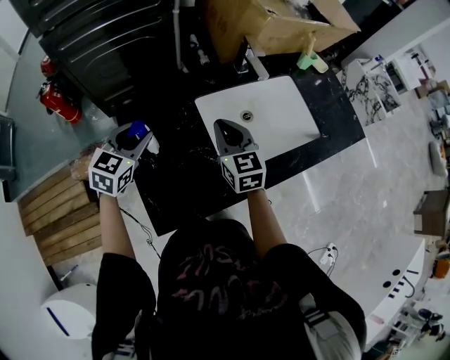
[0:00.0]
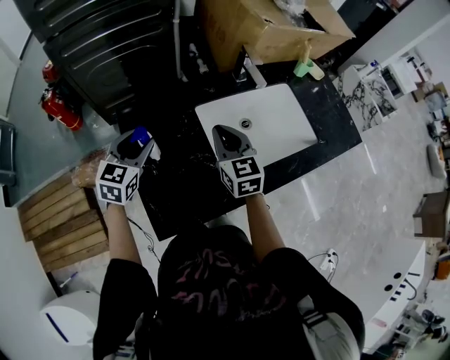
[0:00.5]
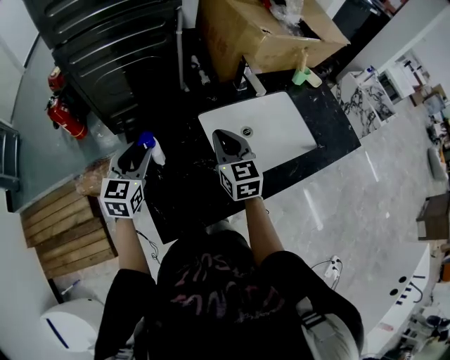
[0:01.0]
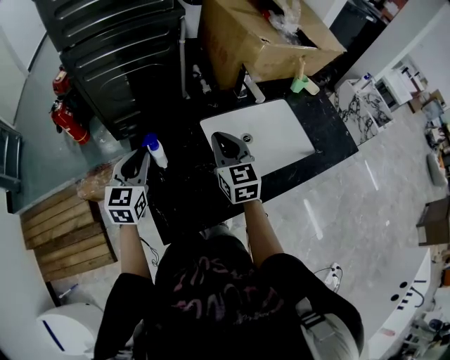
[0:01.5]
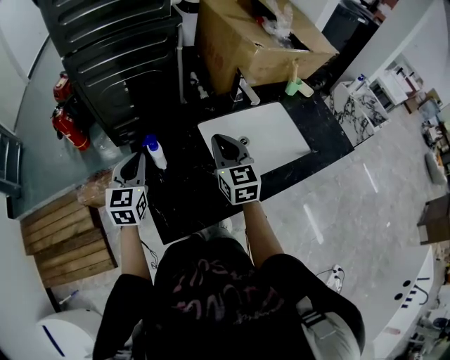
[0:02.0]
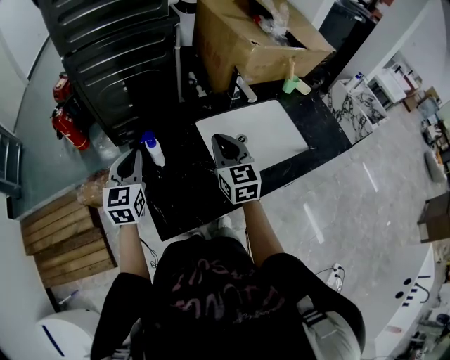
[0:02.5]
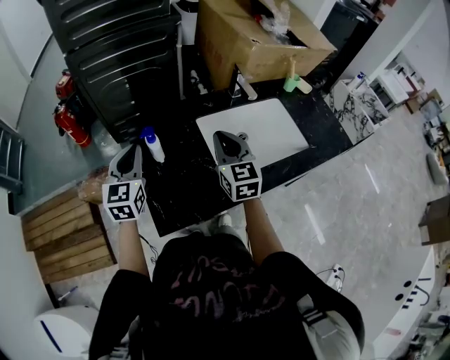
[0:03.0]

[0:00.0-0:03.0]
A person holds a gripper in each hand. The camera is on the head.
0:00.0 to 0:01.5: The left gripper changes place by about 5 cm, and turns by about 20 degrees, while the right gripper is displaced upward by approximately 5 cm.
0:01.5 to 0:03.0: The grippers move only a little.

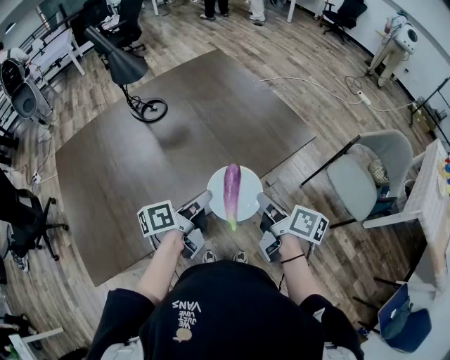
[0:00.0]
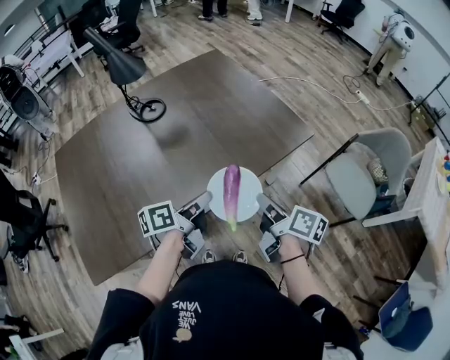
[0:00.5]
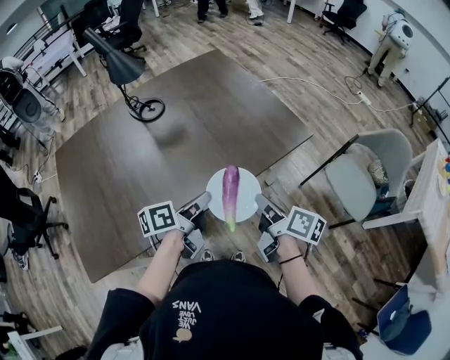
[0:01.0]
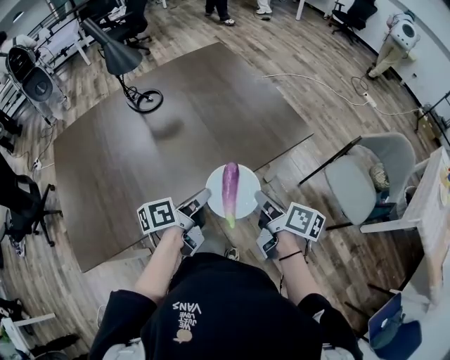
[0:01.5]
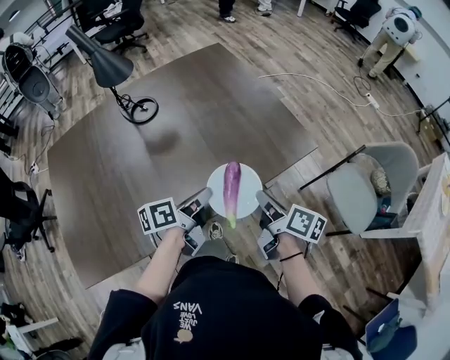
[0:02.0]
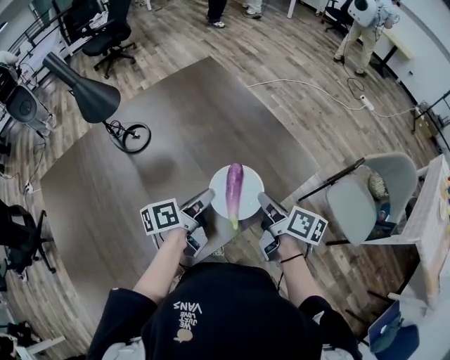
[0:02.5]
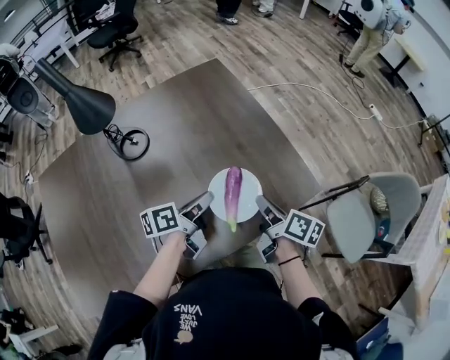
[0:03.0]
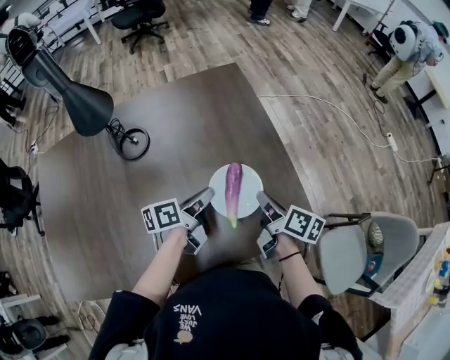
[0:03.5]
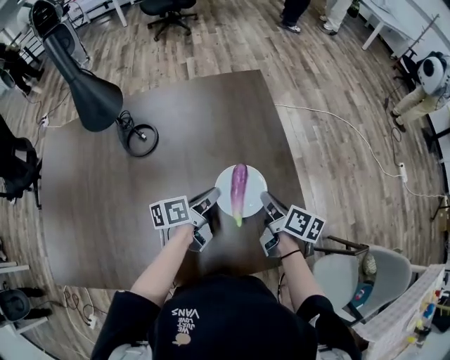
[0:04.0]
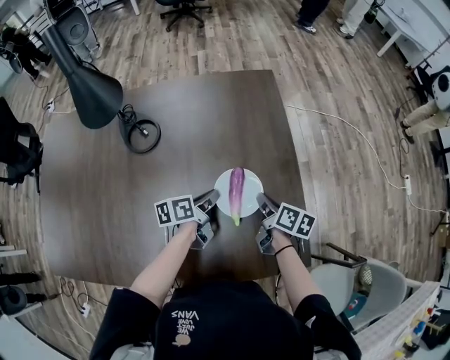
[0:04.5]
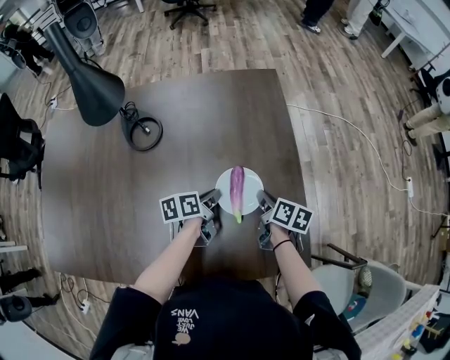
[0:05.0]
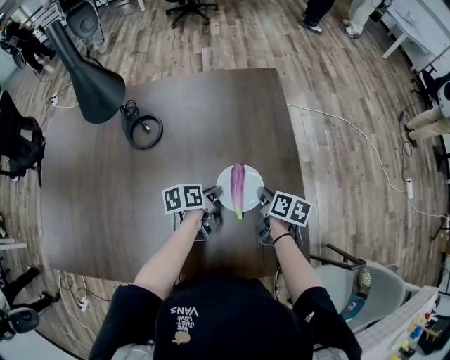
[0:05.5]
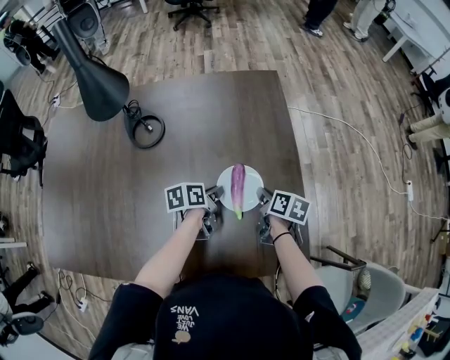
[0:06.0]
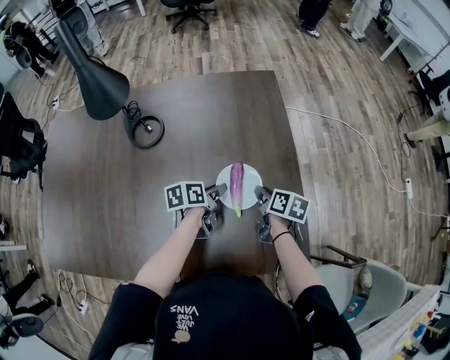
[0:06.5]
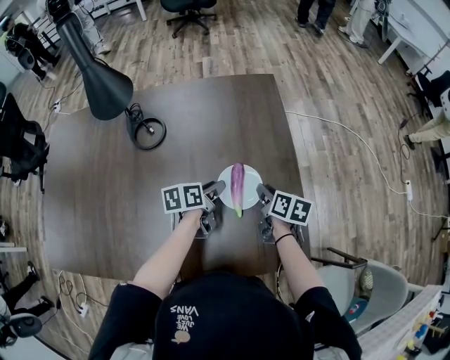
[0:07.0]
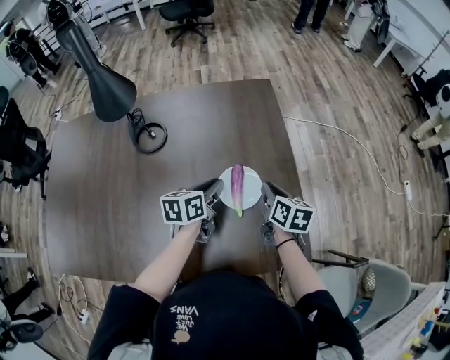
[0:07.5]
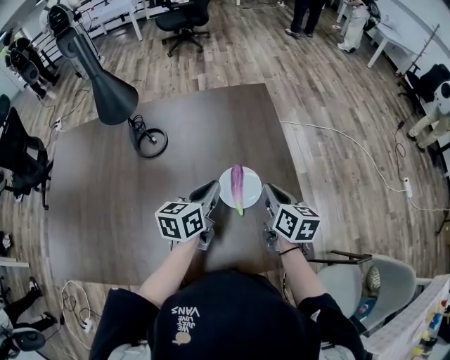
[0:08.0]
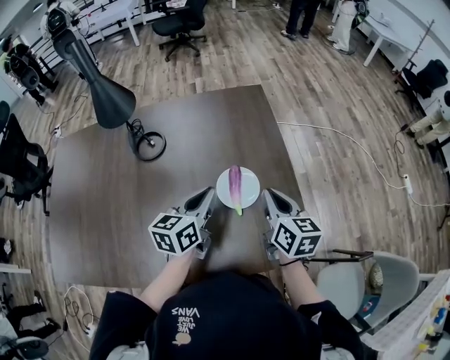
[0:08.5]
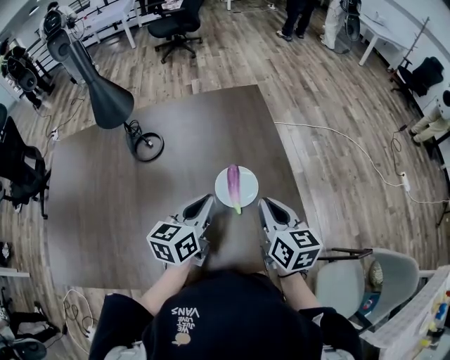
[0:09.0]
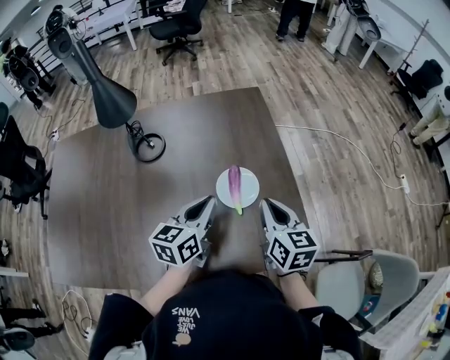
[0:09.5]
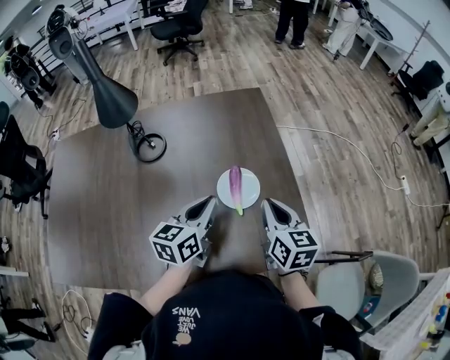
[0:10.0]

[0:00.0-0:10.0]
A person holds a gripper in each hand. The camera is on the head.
0:00.0 to 0:02.0: Both grippers move forward, about 10 cm.
0:02.0 to 0:04.0: The grippers both shift forward by some 35 cm. The right gripper swivels some 20 degrees.
0:04.0 to 0:06.0: Both grippers travel together downward, some 10 cm. The right gripper turns by about 20 degrees.
0:06.0 to 0:08.0: The grippers both shift upward by roughly 15 cm. The right gripper changes its angle by approximately 30 degrees. The left gripper changes its angle by approximately 40 degrees, and opens, then closes again.
0:08.0 to 0:10.0: Both grippers move backward, about 5 cm.

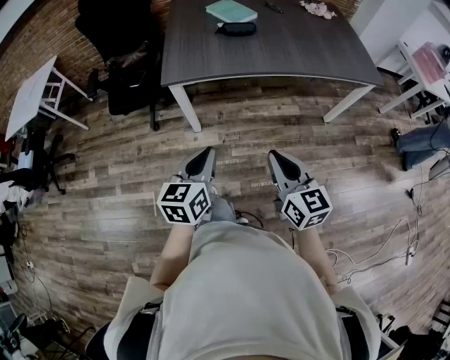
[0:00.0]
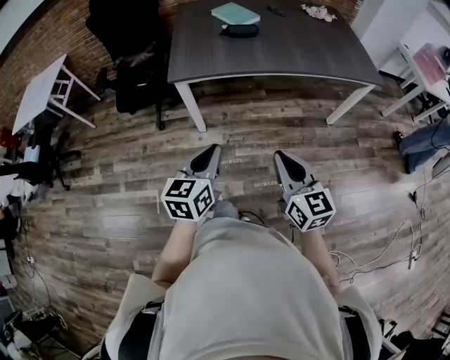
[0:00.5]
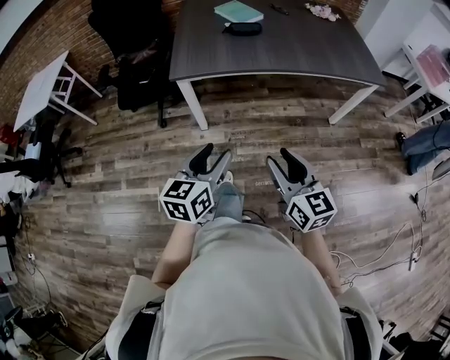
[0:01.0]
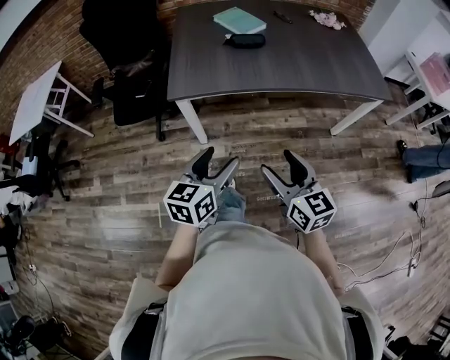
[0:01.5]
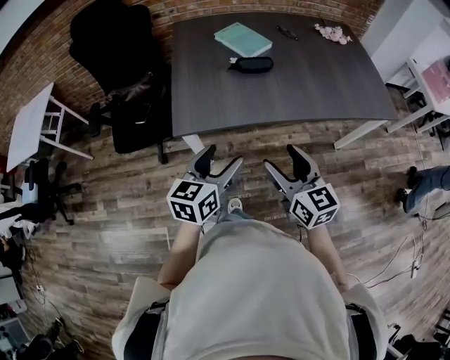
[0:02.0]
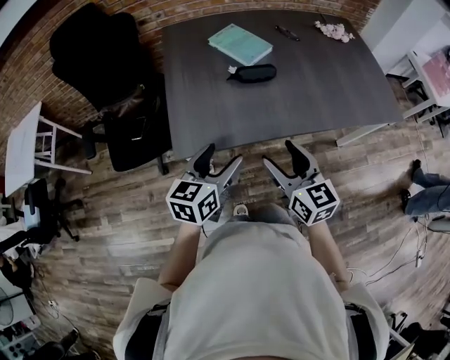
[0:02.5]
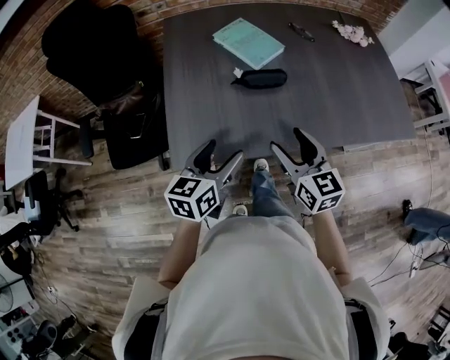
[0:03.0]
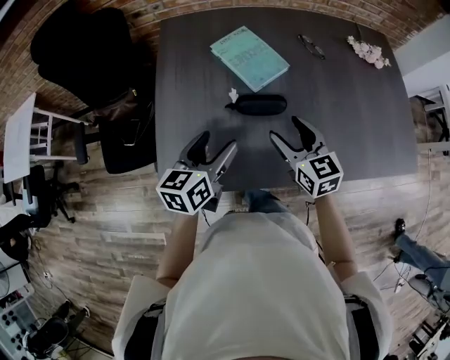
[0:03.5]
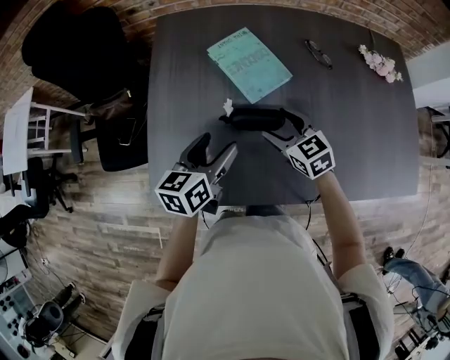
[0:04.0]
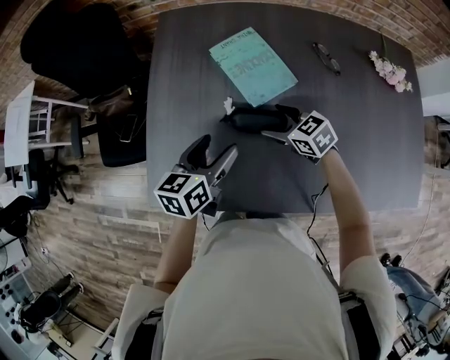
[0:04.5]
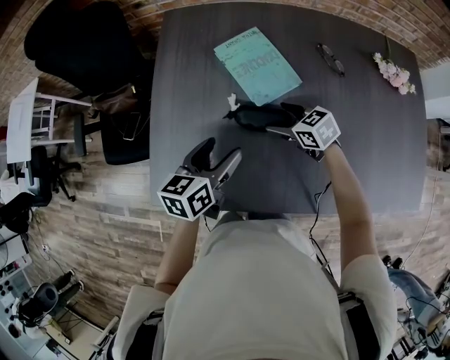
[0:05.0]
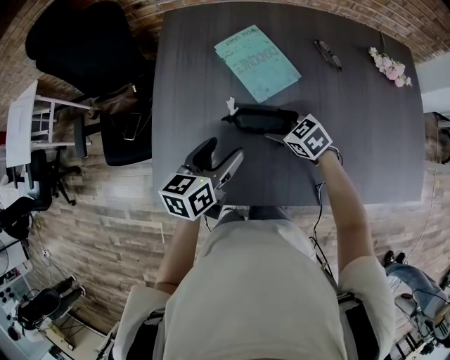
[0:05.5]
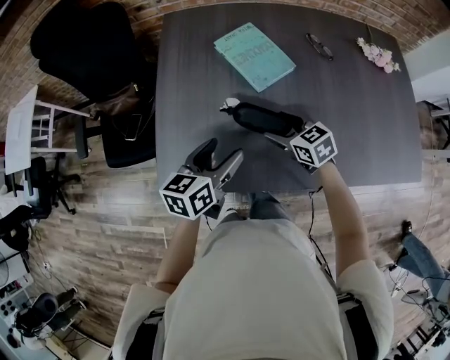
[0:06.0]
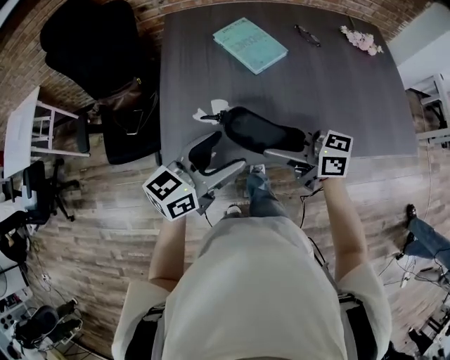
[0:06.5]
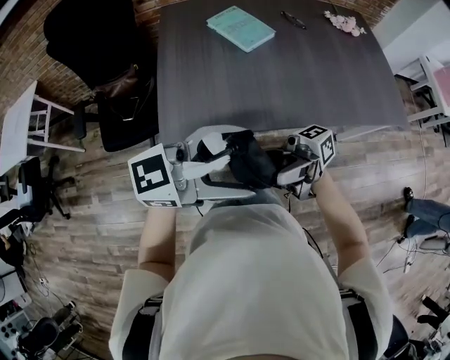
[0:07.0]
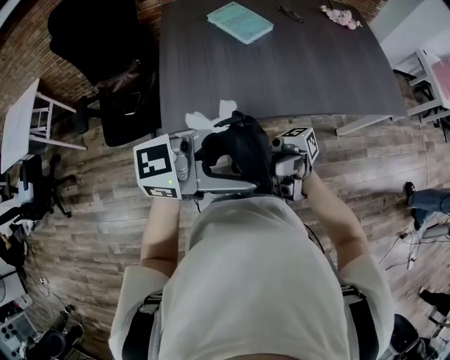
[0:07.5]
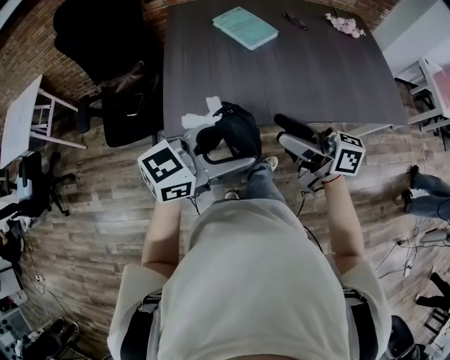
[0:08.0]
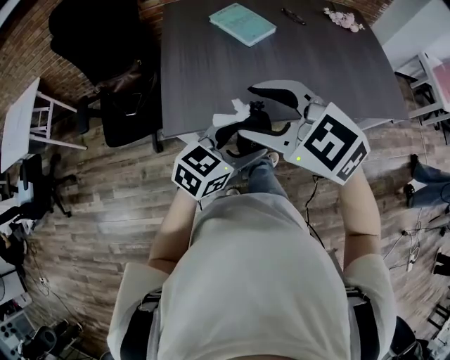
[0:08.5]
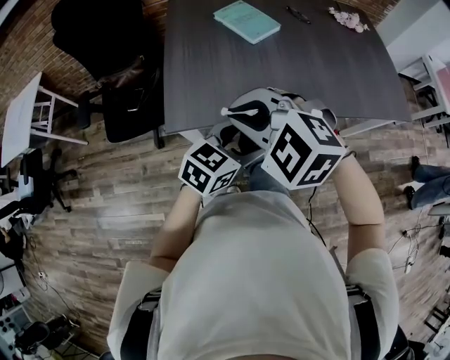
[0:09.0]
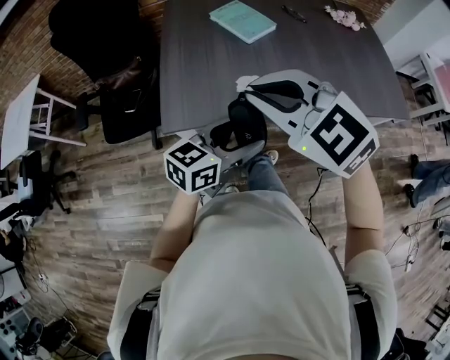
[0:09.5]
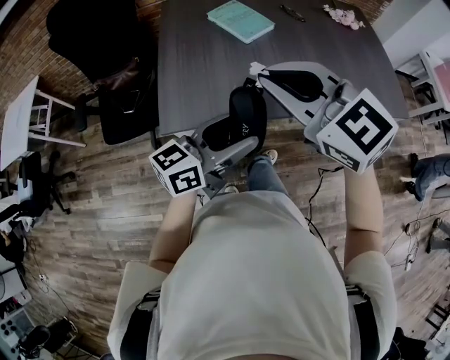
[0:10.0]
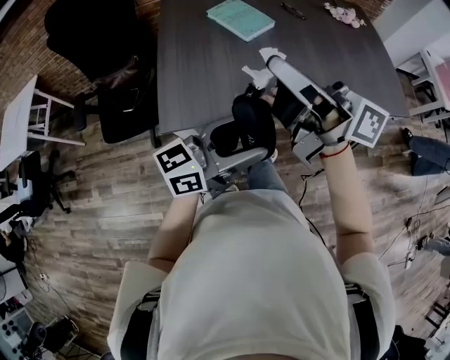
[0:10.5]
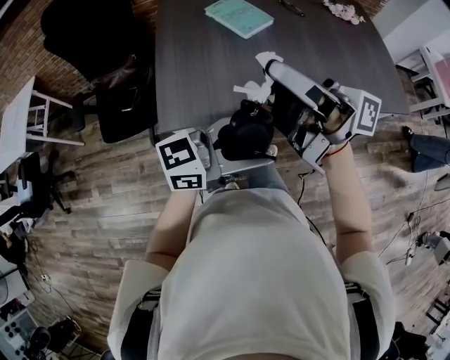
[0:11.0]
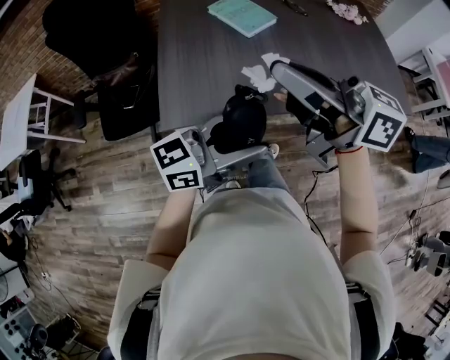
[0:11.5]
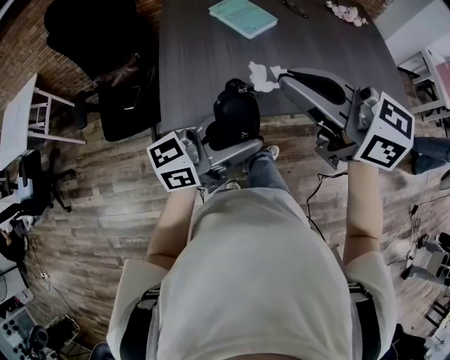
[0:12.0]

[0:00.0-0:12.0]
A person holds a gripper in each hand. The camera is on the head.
0:00.0 to 0:02.0: Both grippers move forward, about 20 cm. The left gripper opens its fingers. The right gripper opens its fingers.
0:02.0 to 0:04.0: The grippers both shift forward by approximately 40 cm. The right gripper swivels approximately 30 degrees.
0:04.0 to 0:06.0: The right gripper shifts by some 5 cm. Meanwhile the left gripper heads backward, covering about 5 cm.
0:06.0 to 0:08.0: The right gripper changes place by approximately 35 cm, and tilts its fingers approximately 50 degrees upward; the left gripper moves some 30 cm, and rotates about 50 degrees.
0:08.0 to 0:10.0: The right gripper goes some 10 cm upward, rolls counterclockwise, seen from behind, by approximately 60 degrees, and closes its fingers; the left gripper moves roughly 10 cm downward and comes back, and rotates approximately 20 degrees.
0:10.0 to 0:12.0: The right gripper swivels some 30 degrees.

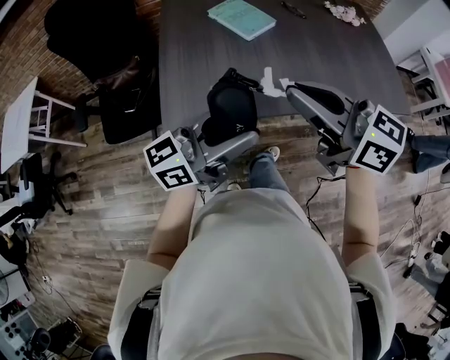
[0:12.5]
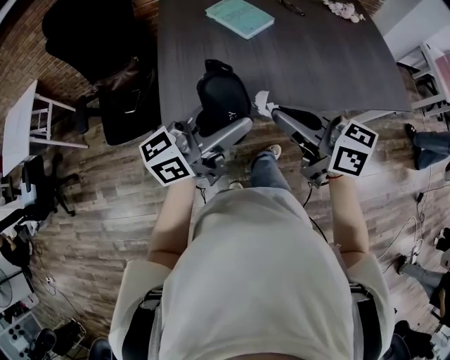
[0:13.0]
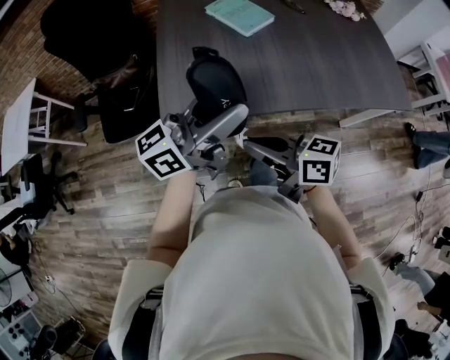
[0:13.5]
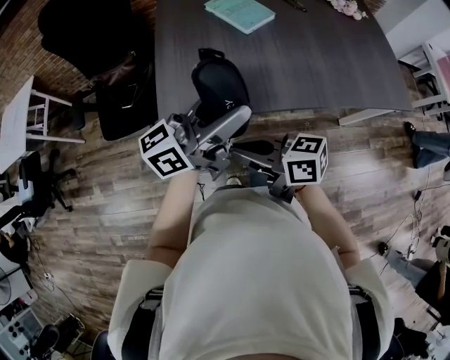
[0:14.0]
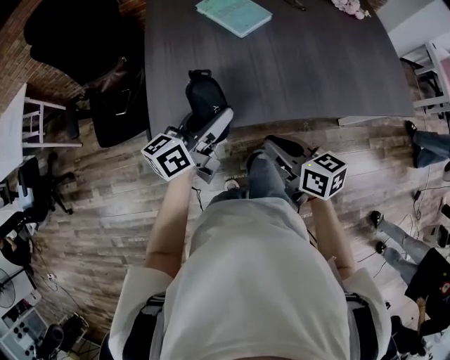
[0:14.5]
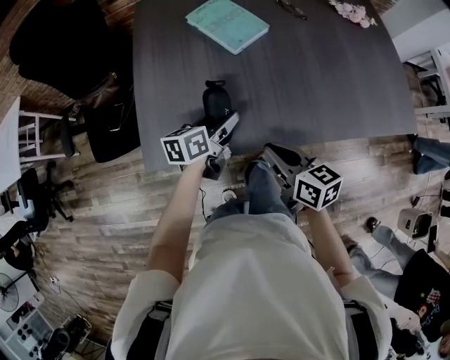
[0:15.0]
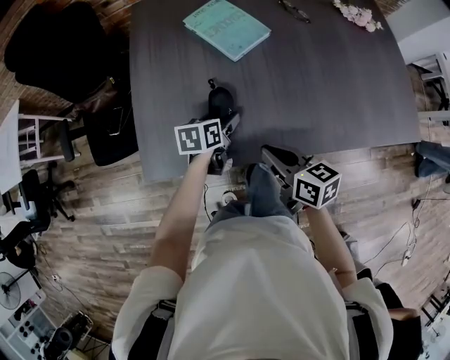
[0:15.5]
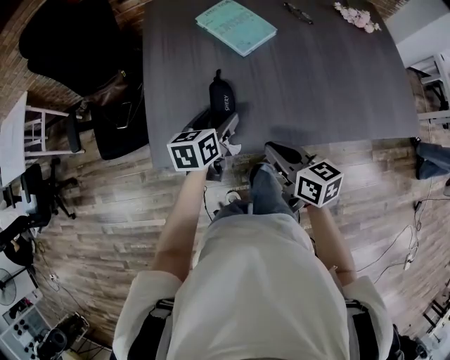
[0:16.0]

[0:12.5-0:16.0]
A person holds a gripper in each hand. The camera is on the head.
0:12.5 to 0:14.5: The left gripper changes place by about 15 cm, and turns by approximately 30 degrees; the right gripper is displaced downward by some 20 cm, and rotates some 30 degrees.
0:14.5 to 0:16.0: The left gripper moves downward and forward, roughly 15 cm, and angles its fingers downward, by about 30 degrees. Meanwhile the right gripper goes some 5 cm forward.
